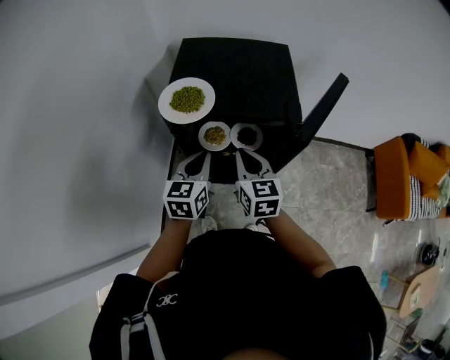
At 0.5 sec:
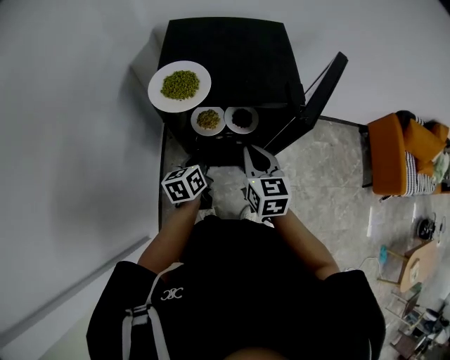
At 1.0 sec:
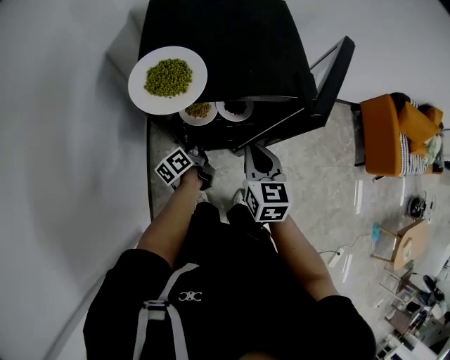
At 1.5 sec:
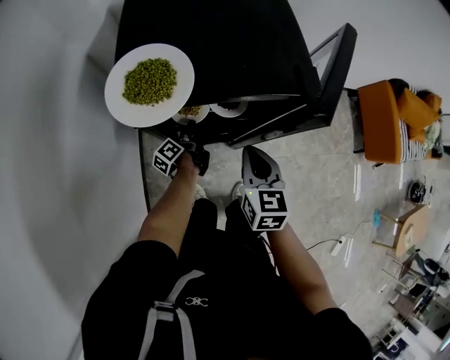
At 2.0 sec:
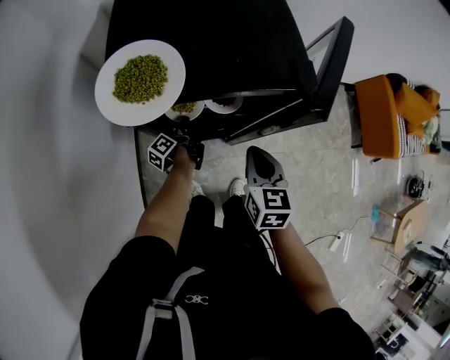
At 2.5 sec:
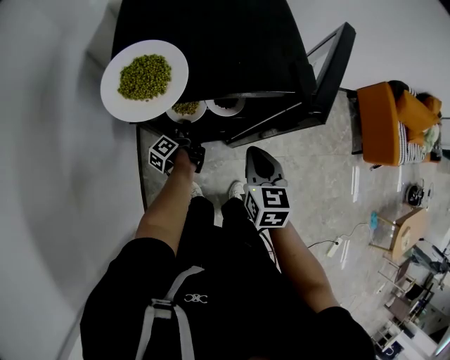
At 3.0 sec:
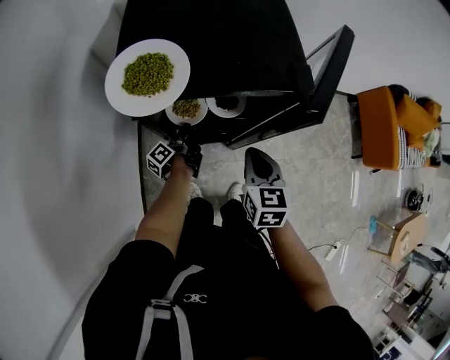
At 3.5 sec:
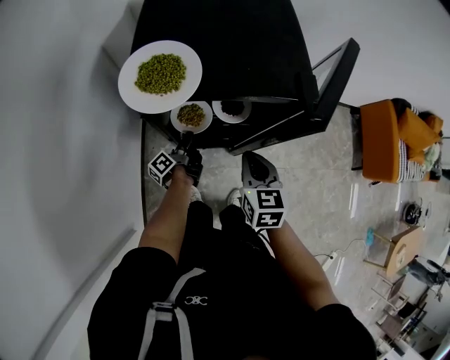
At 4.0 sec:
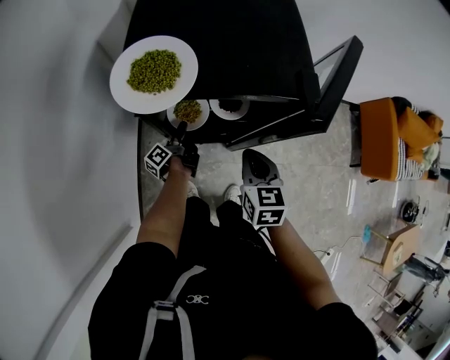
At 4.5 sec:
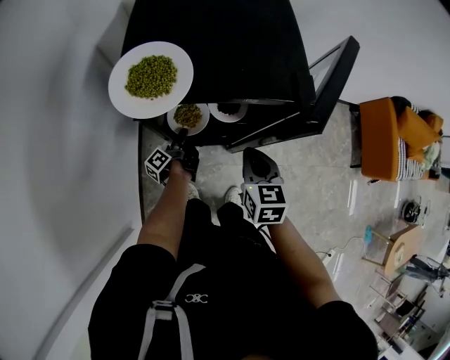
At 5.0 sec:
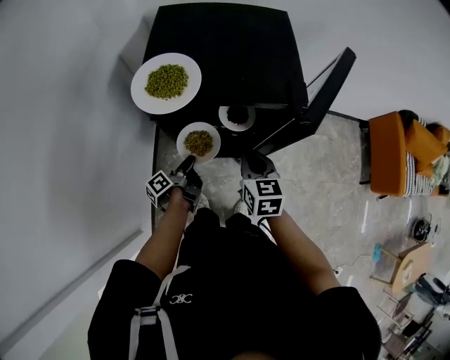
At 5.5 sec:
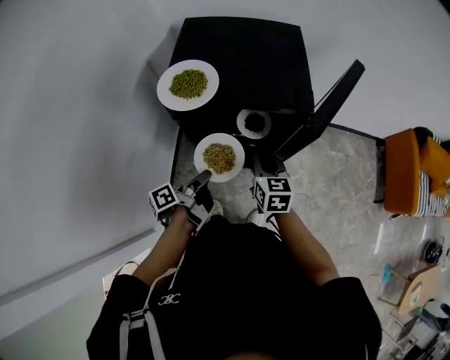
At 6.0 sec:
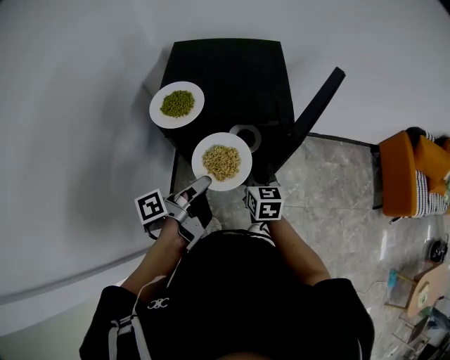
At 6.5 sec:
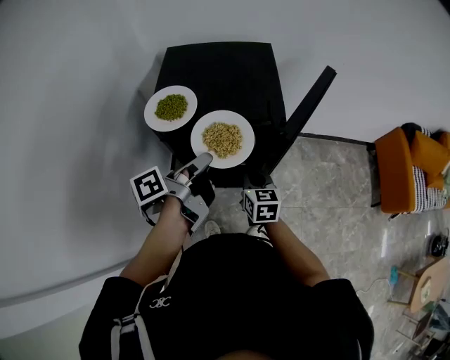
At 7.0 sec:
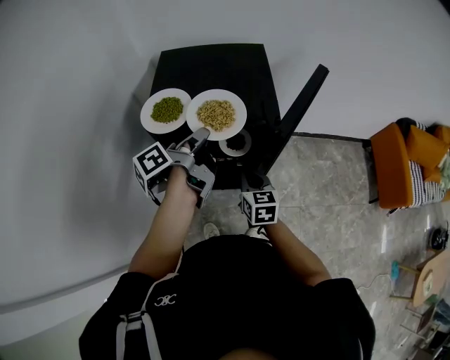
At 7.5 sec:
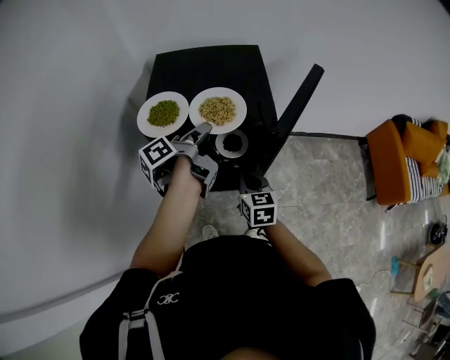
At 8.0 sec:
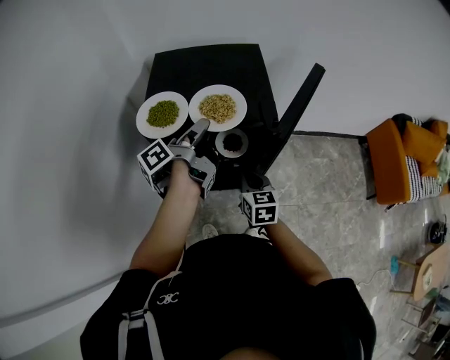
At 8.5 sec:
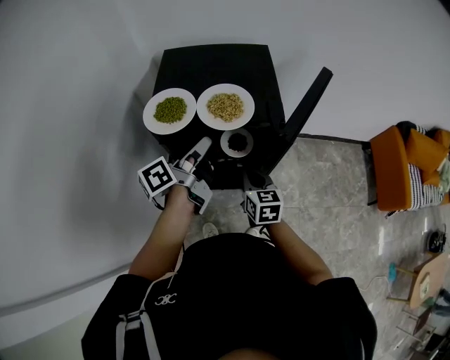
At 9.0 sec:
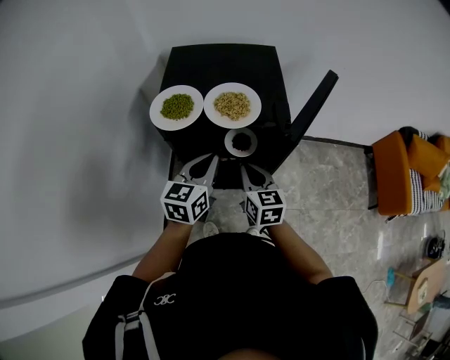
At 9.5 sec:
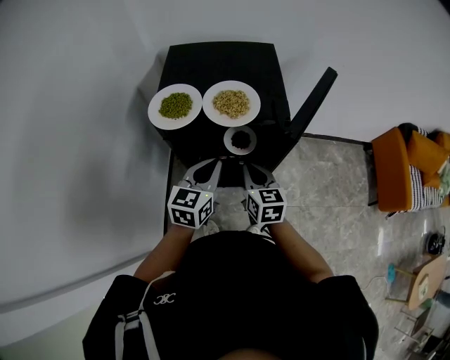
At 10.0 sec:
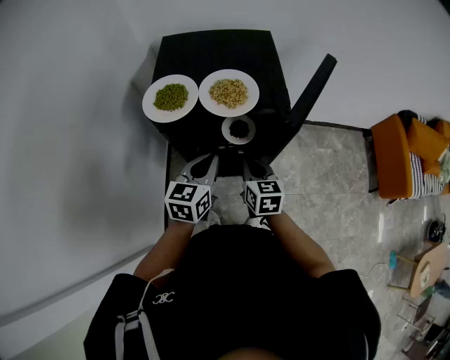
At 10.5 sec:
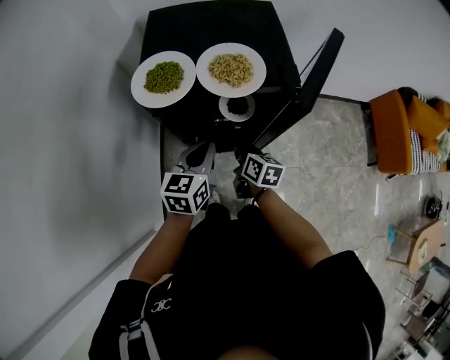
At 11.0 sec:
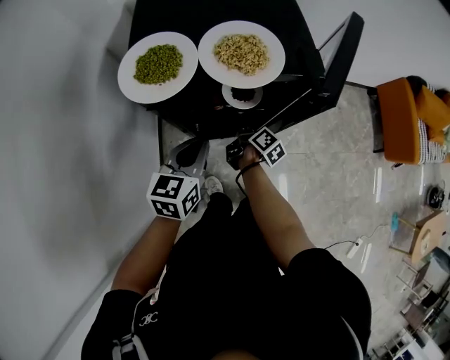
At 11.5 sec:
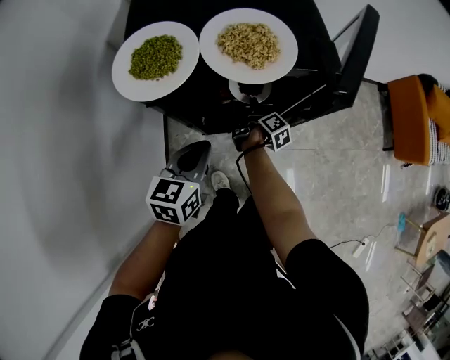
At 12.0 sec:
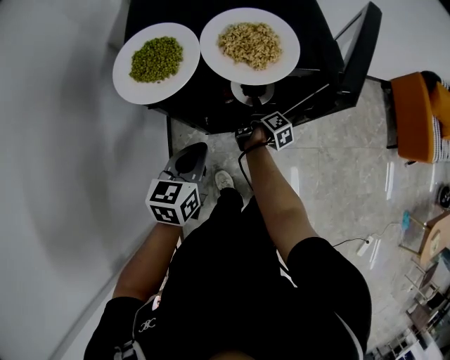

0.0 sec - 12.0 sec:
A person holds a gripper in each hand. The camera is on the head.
0.0 sec - 2.0 sec: The right gripper moves downward and to the right, approximately 10 cm, and turns by approximately 20 degrees. Meanwhile the left gripper heads downward, covering about 30 cm, and twists roughly 80 degrees counterclockwise, seen from behind.
2.0 sec - 4.0 sec: The grippers make only small movements.
4.0 sec - 6.0 sec: The left gripper moves upward and backward, about 35 cm, changes its angle by roughly 20 degrees, and closes.
6.0 sec - 8.0 sec: The left gripper heads forward, covering about 15 cm, and opens up.
8.0 sec - 10.0 sec: The left gripper travels backward and downward by roughly 15 cm, rotates around the line of its fingers by about 80 degrees, clockwise from behind, and closes up.
10.0 sec - 12.0 sec: The left gripper goes some 10 cm downward and to the left; the right gripper heads downward and forward, covering roughly 25 cm, twists about 80 degrees clockwise, seen from behind, and opens up.

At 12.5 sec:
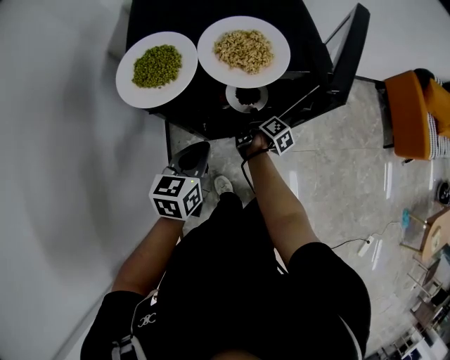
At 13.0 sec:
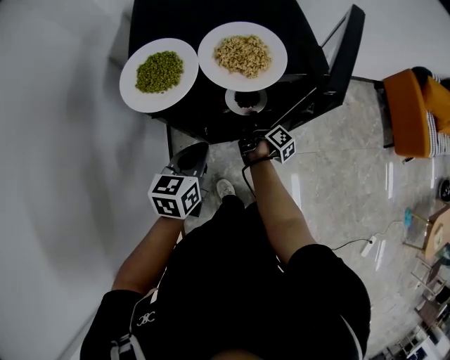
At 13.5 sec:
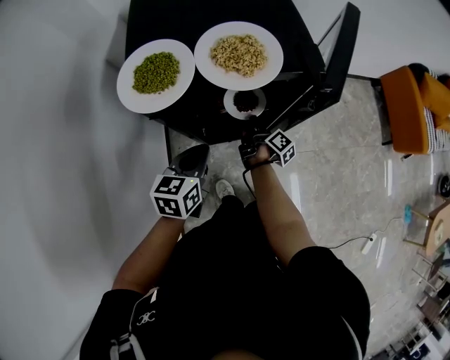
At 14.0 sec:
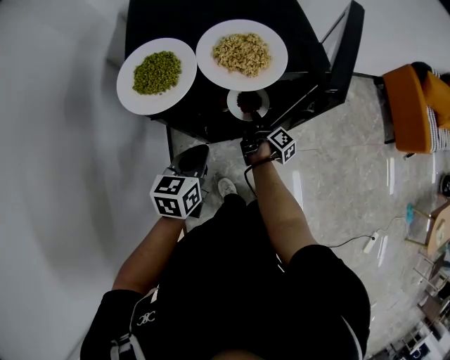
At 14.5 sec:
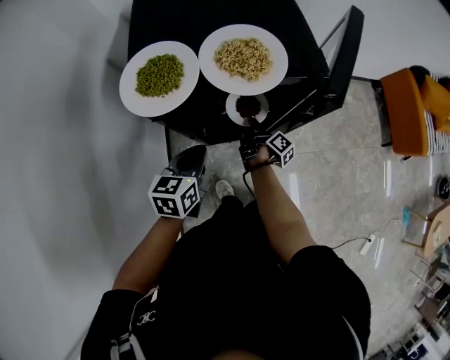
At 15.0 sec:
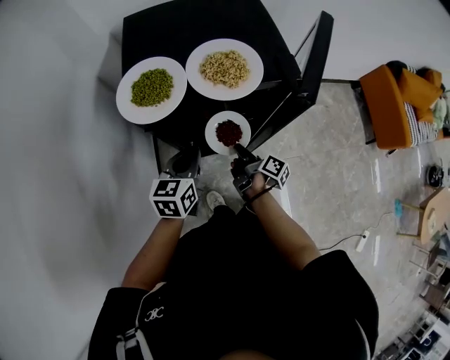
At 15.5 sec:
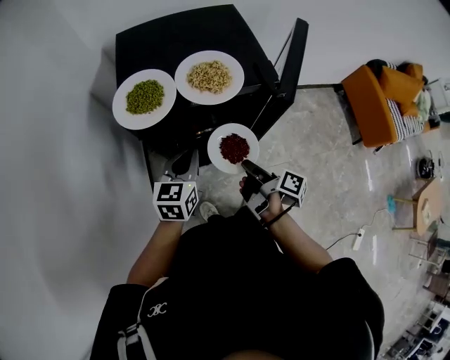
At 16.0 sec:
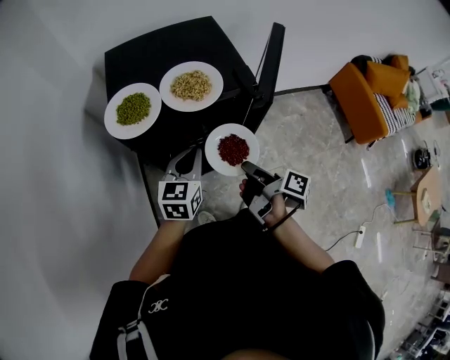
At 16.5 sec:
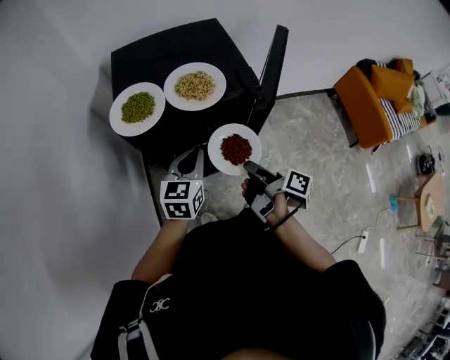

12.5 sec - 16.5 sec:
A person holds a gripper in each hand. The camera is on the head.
12.5 sec - 14.5 sec: There are only small adjustments of the grippers.
14.5 sec - 16.5 sec: The left gripper travels upward and to the right by about 10 cm. Meanwhile the right gripper goes approximately 30 cm upward and backward.

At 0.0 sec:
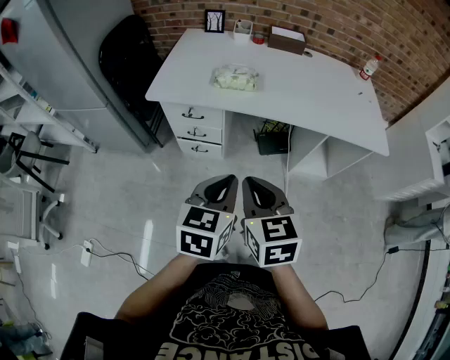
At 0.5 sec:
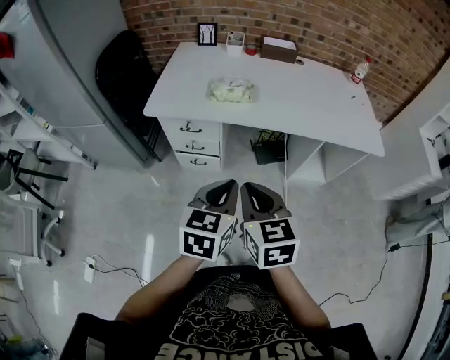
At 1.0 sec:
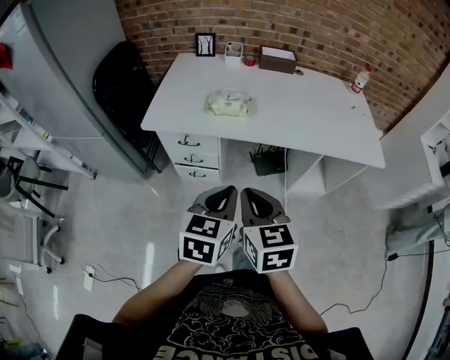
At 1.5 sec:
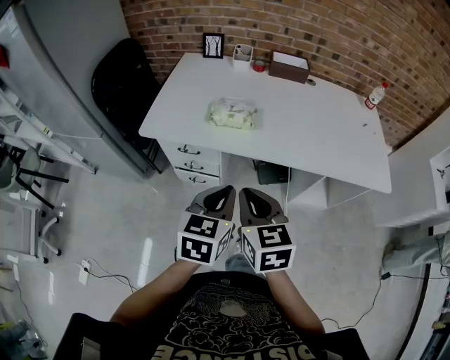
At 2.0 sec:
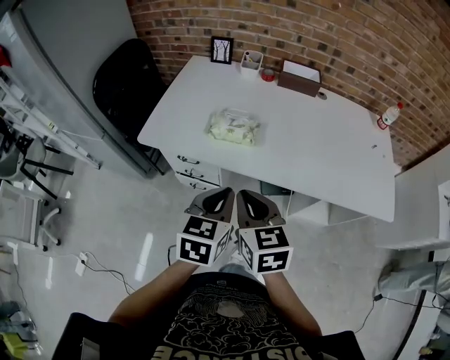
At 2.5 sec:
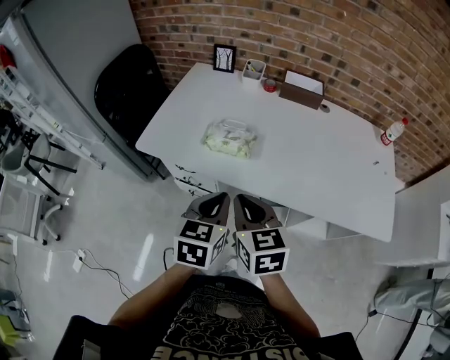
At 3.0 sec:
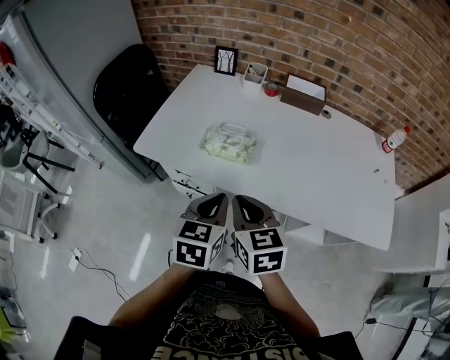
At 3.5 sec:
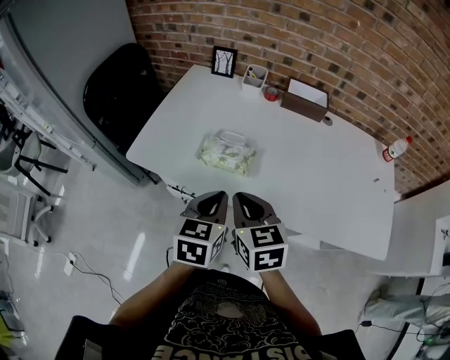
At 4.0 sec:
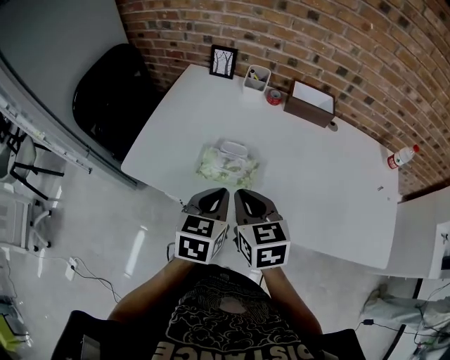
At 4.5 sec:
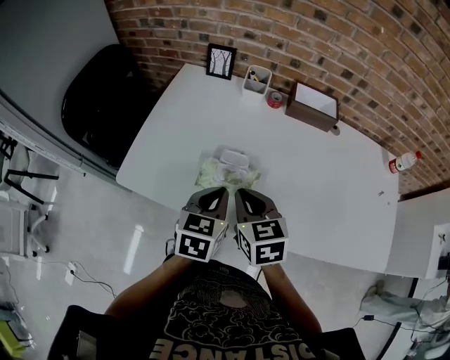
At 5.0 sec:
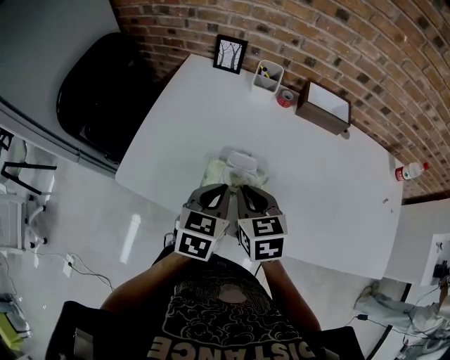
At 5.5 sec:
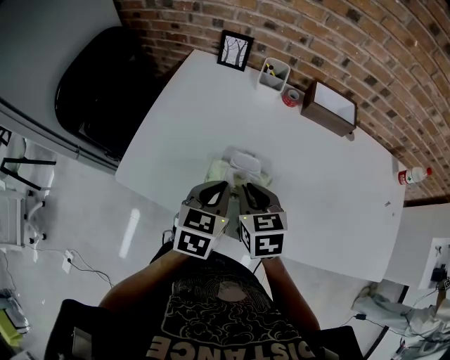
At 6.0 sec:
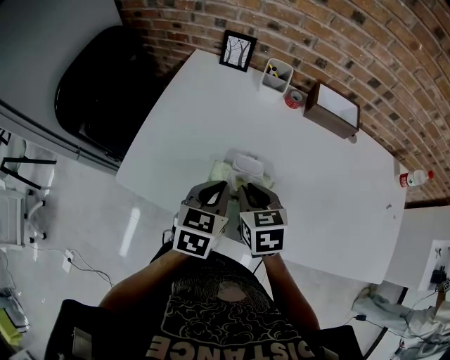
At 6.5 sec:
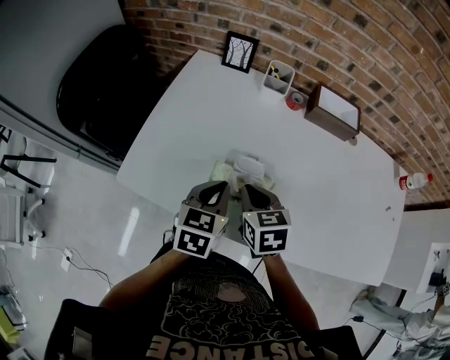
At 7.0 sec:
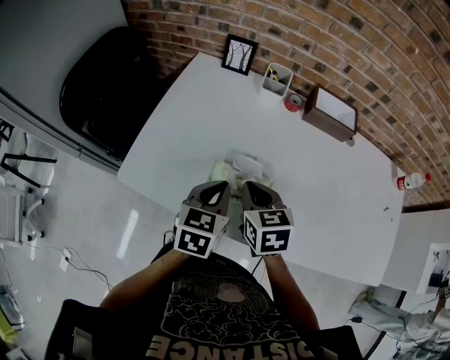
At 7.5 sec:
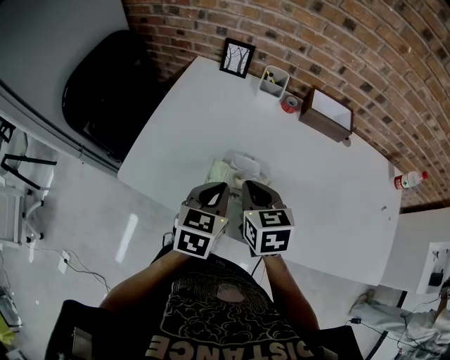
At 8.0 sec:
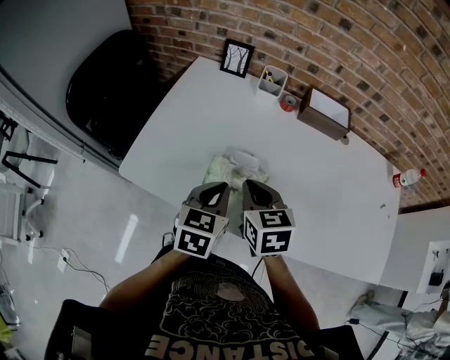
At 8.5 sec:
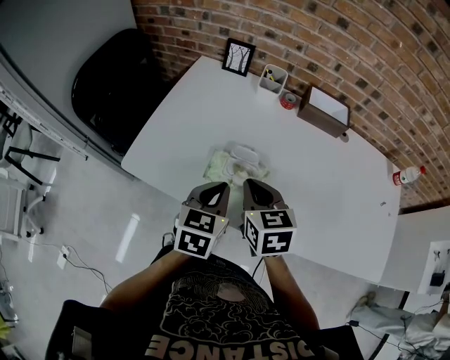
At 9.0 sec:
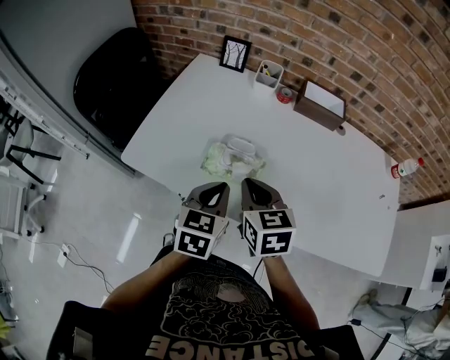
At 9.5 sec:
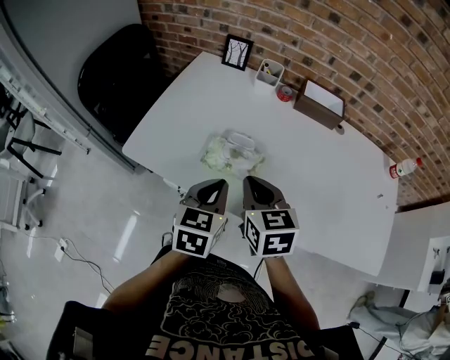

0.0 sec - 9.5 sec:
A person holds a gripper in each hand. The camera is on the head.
0.0 sec - 2.0 sec: The two grippers go about 20 cm forward.
2.0 sec - 4.0 sec: The two grippers go roughly 20 cm forward.
4.0 sec - 5.5 sec: The left gripper travels forward by about 10 cm. The right gripper travels forward and downward by approximately 10 cm.
5.5 sec - 7.5 sec: The grippers move only a little.
7.5 sec - 9.5 sec: The grippers both shift backward by about 10 cm.

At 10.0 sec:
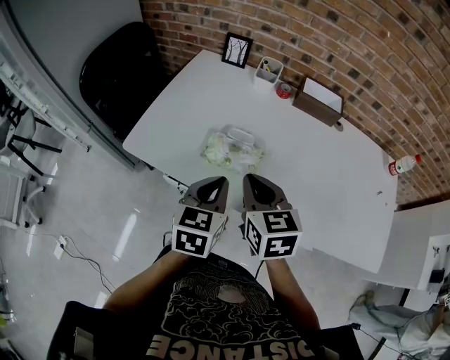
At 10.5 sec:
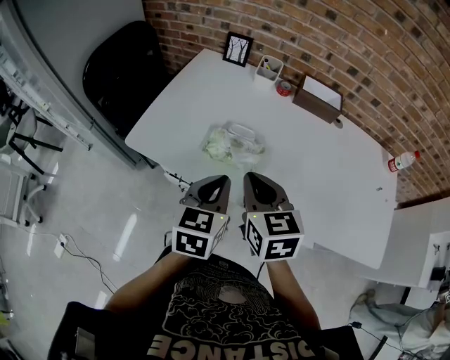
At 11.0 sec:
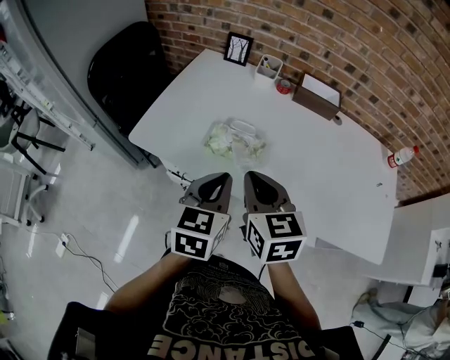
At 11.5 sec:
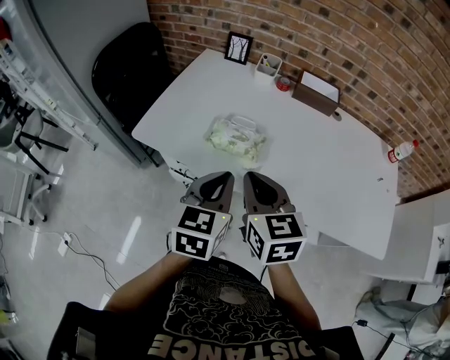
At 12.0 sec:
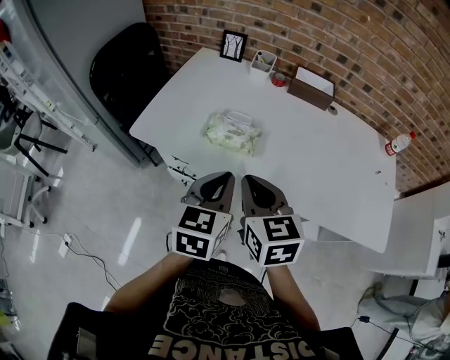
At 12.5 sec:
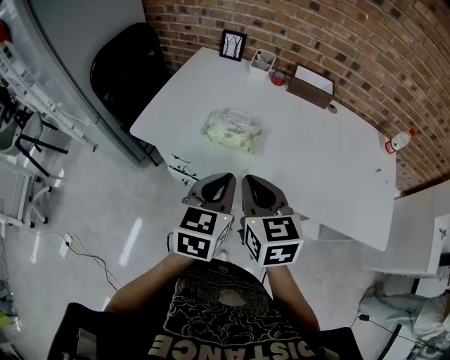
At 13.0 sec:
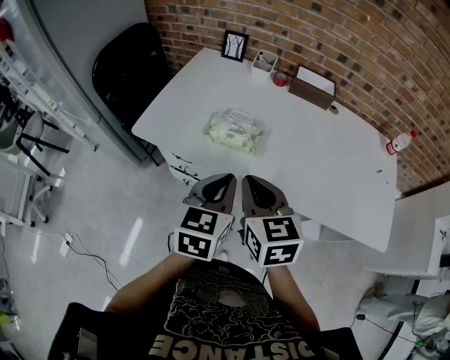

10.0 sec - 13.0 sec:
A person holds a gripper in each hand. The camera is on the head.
10.0 sec - 11.5 sec: The two grippers go roughly 5 cm backward.
11.5 sec - 13.0 sec: The grippers make only small movements.
